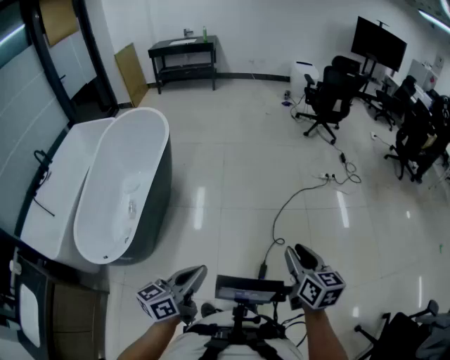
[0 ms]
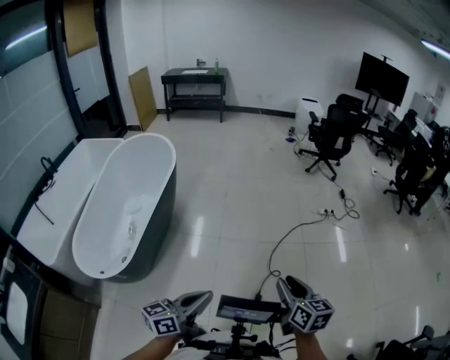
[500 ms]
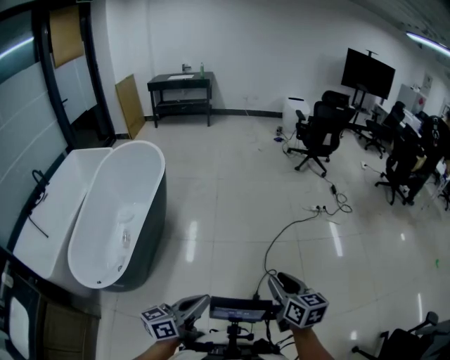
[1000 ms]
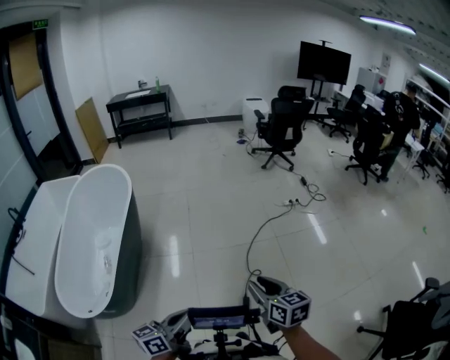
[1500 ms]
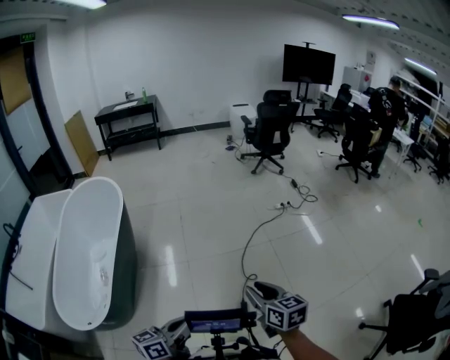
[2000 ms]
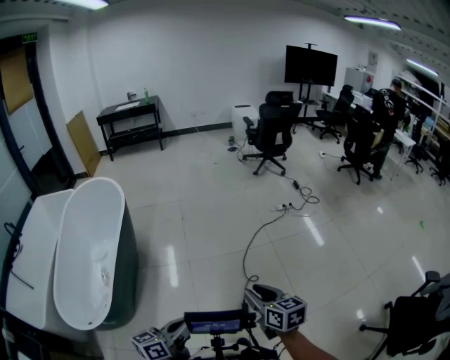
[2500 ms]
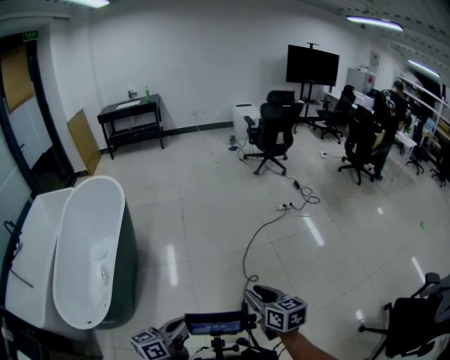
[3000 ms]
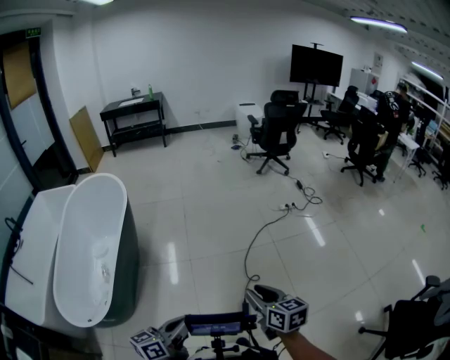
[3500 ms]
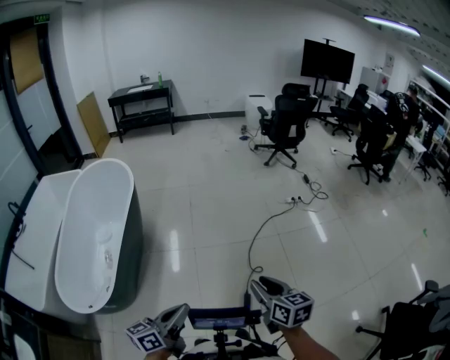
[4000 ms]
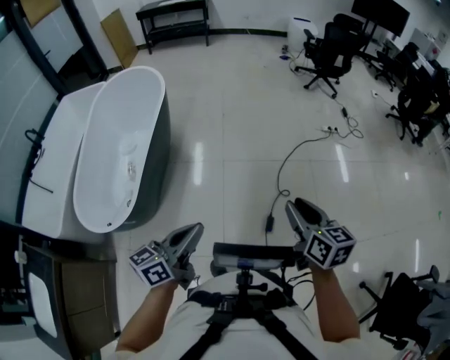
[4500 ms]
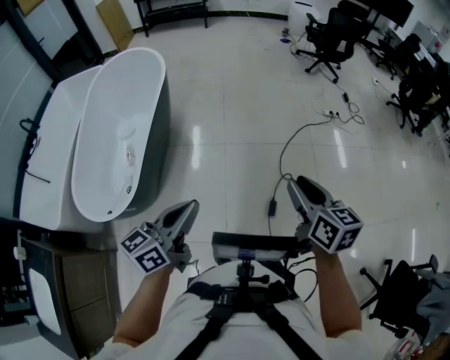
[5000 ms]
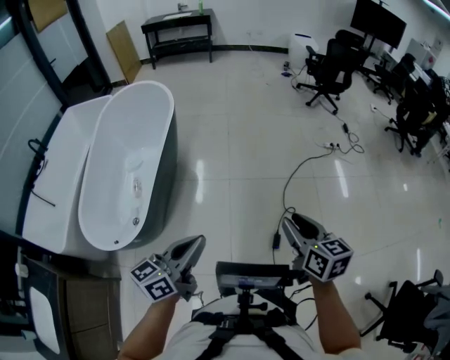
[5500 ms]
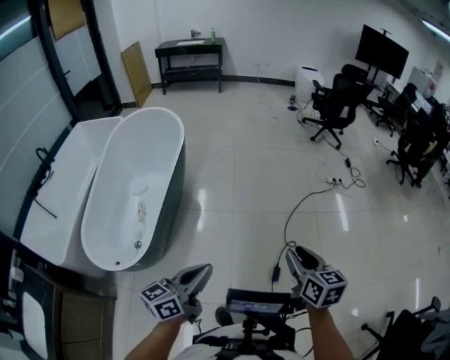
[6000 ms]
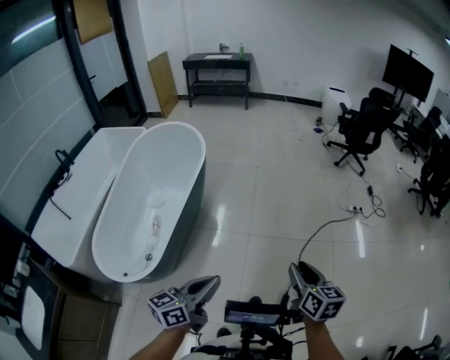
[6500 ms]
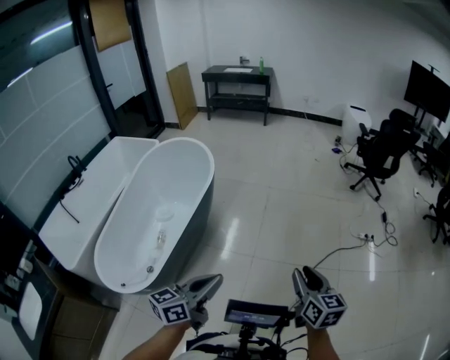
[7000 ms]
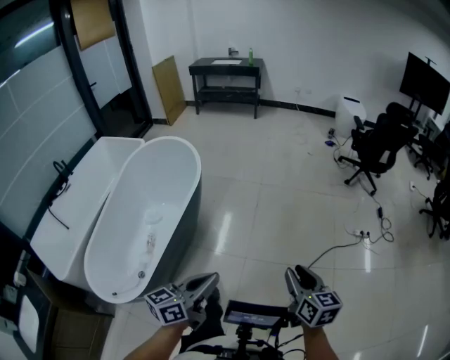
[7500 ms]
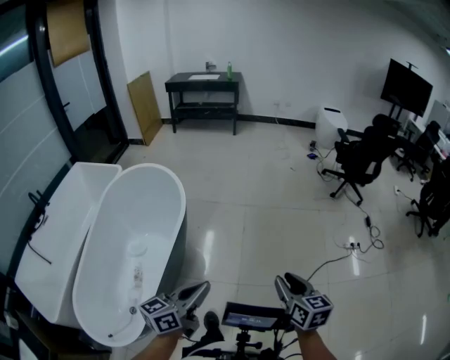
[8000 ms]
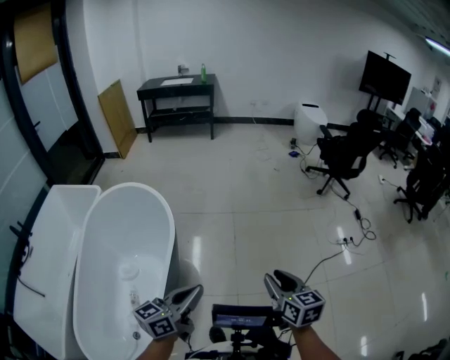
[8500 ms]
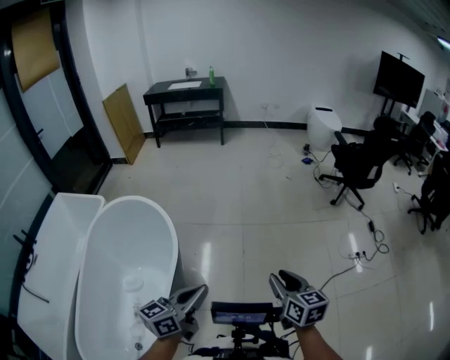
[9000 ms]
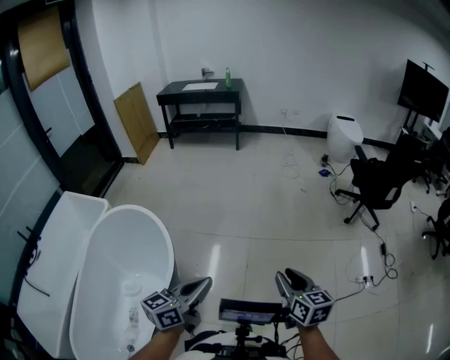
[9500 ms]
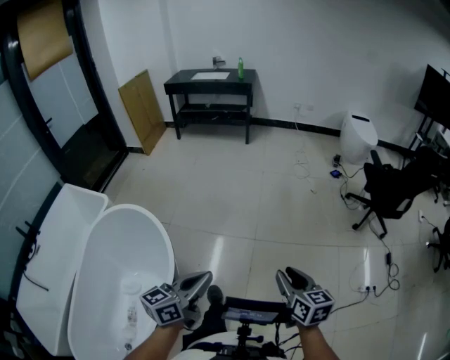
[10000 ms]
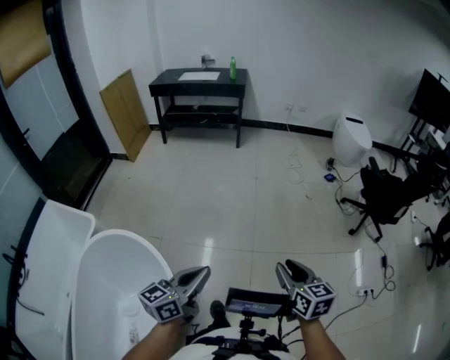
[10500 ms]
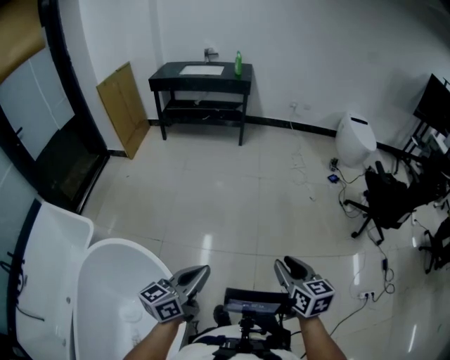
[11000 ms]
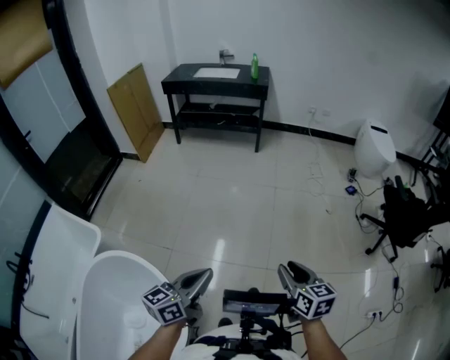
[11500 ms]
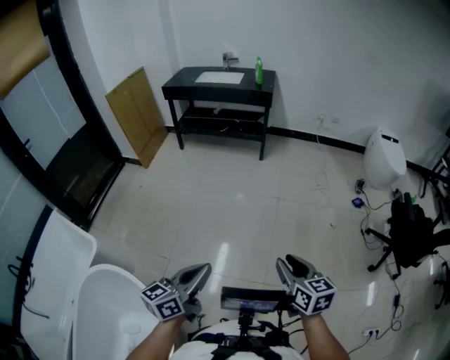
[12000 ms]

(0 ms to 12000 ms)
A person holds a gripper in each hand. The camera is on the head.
0 ms - 2000 ms: The right gripper moves roughly 5 cm. The left gripper shifts by roughly 5 cm.
2000 ms - 4000 ms: The grippers move only a little.
4000 ms - 6000 ms: Both grippers move to the left, roughly 10 cm.
6000 ms - 8000 ms: Both grippers are carried forward, approximately 40 cm.
8000 ms - 10000 ms: Both grippers are carried forward, roughly 50 cm.
10000 ms - 12000 ms: Both grippers are carried forward, approximately 50 cm.

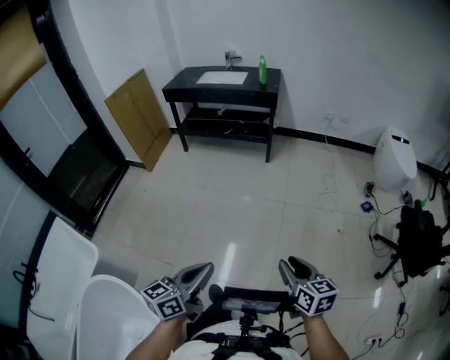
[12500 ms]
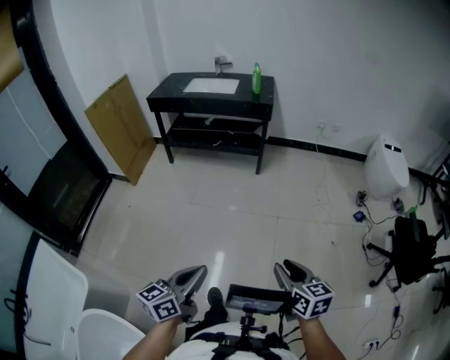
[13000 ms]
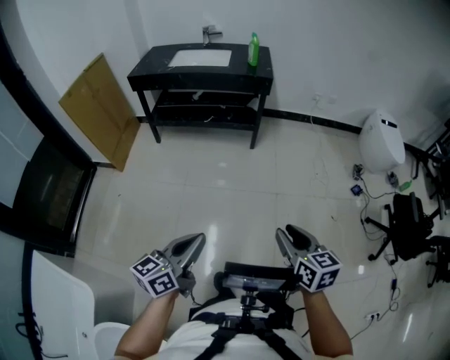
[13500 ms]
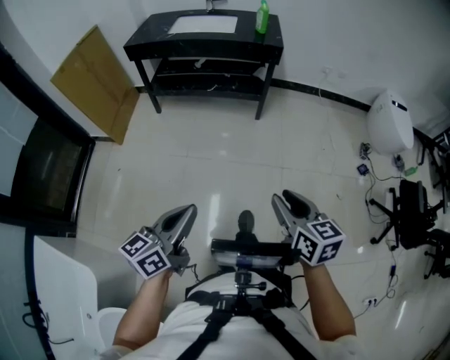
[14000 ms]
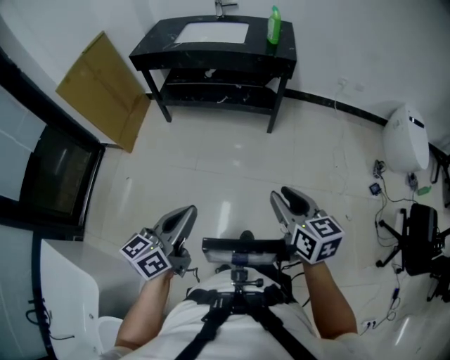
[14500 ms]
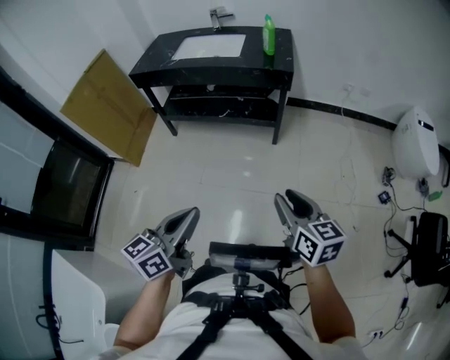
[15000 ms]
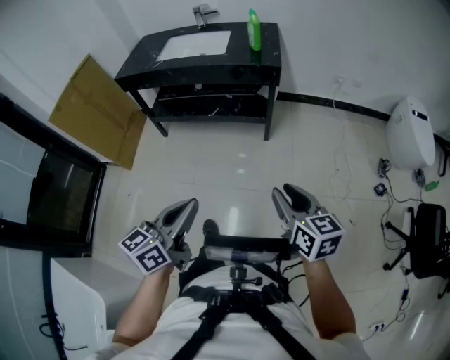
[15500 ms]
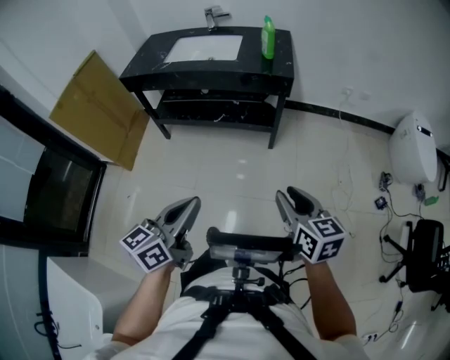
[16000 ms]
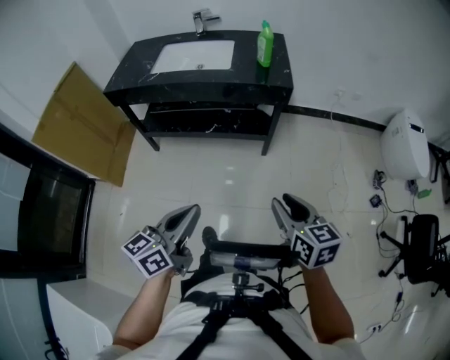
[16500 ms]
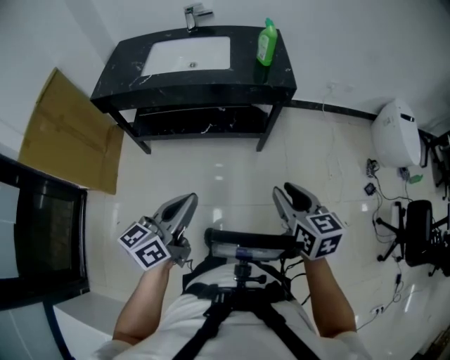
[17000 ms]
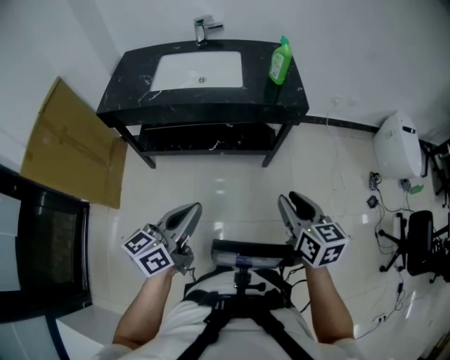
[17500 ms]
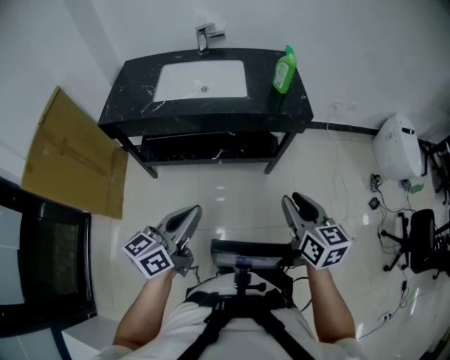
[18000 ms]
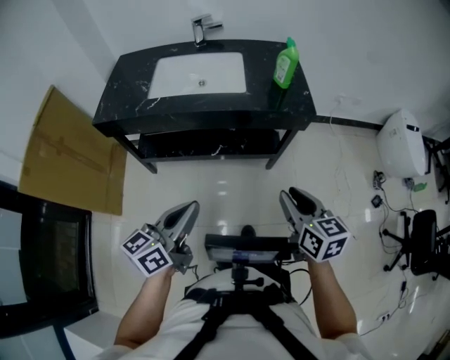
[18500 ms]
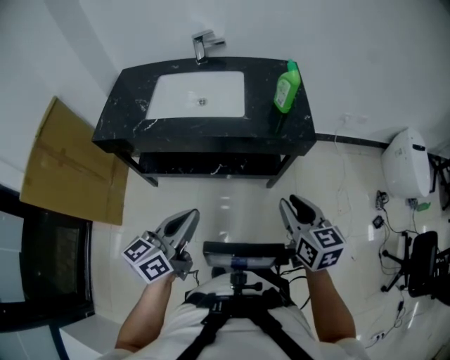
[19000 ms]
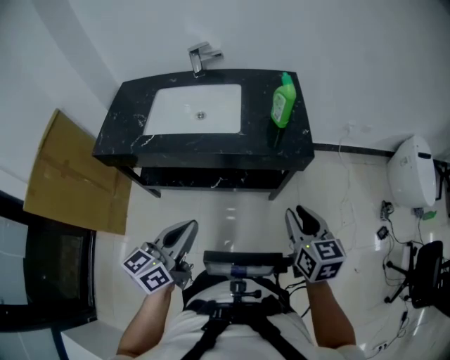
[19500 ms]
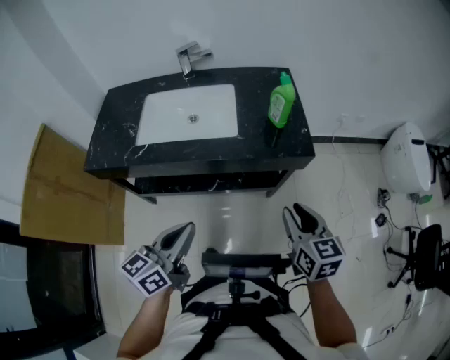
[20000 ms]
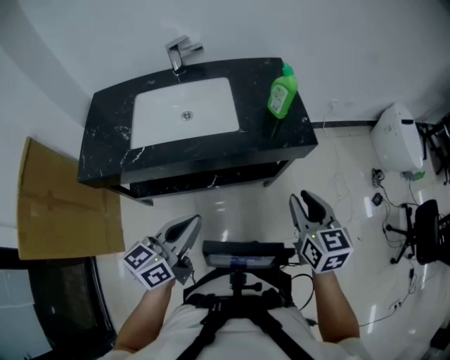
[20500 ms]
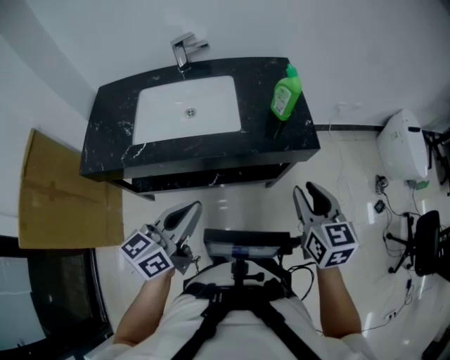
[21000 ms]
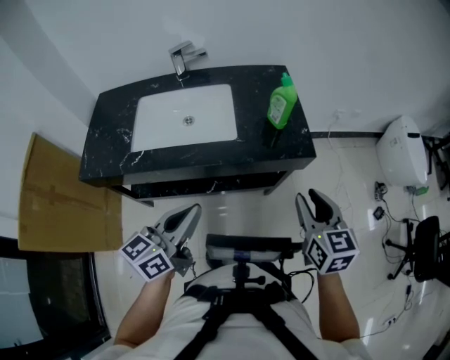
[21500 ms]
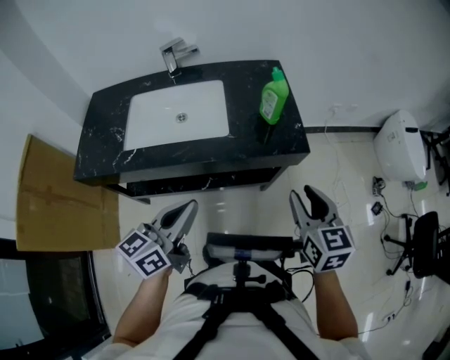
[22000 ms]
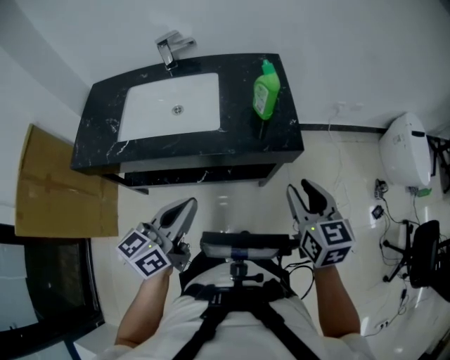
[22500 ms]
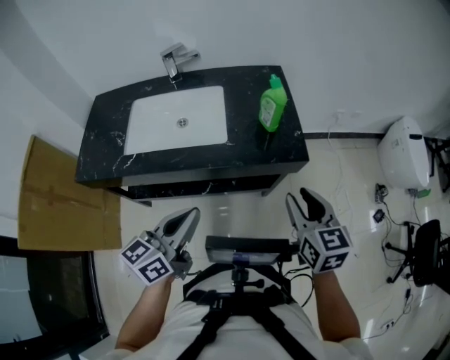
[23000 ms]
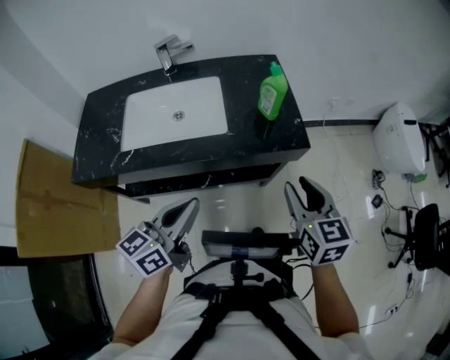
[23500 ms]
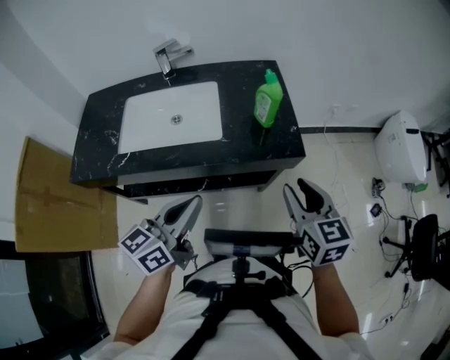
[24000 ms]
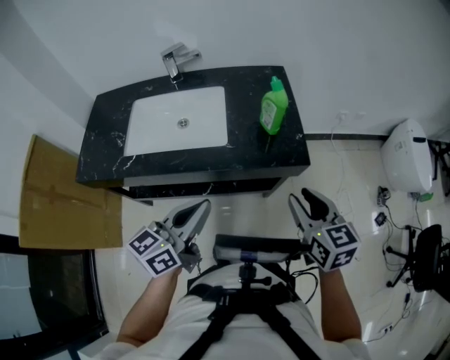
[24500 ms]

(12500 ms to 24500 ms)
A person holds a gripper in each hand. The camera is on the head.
12500 ms - 14500 ms: The pair of grippers is taken forward and to the left, some 40 cm.
14500 ms - 16500 ms: The grippers both shift forward by roughly 20 cm.
16500 ms - 18500 ms: Both grippers travel together forward and to the left, approximately 20 cm.
18500 ms - 20500 ms: The two grippers go some 15 cm forward.
20500 ms - 22500 ms: Both grippers move to the right and forward, approximately 10 cm.
22500 ms - 24500 ms: The grippers make only small movements.

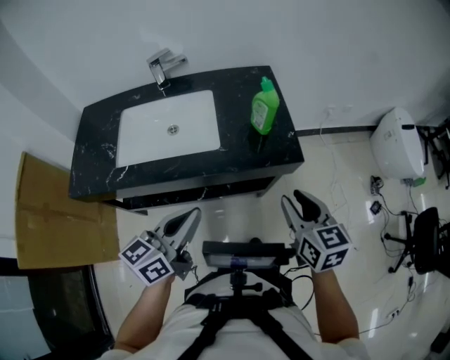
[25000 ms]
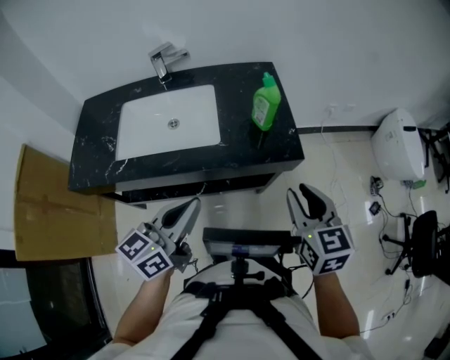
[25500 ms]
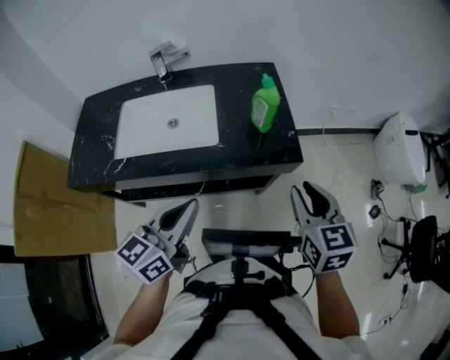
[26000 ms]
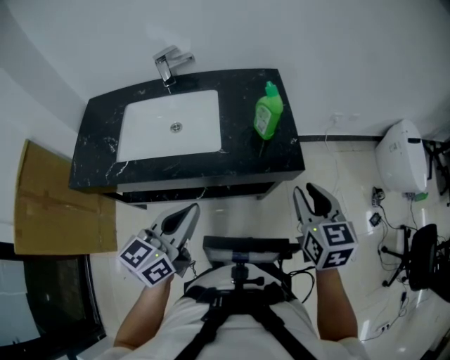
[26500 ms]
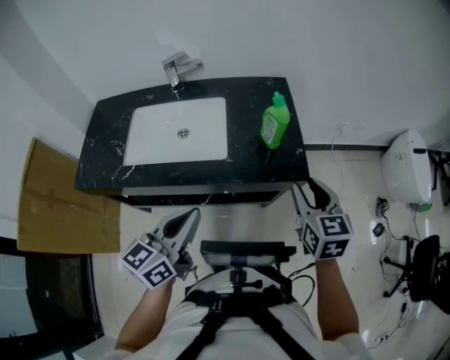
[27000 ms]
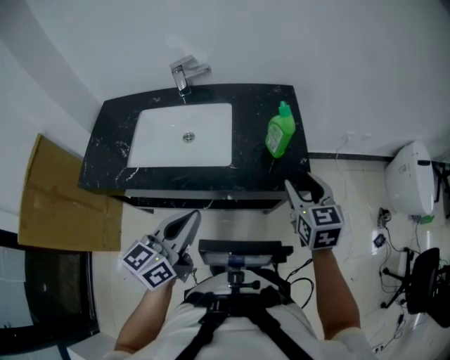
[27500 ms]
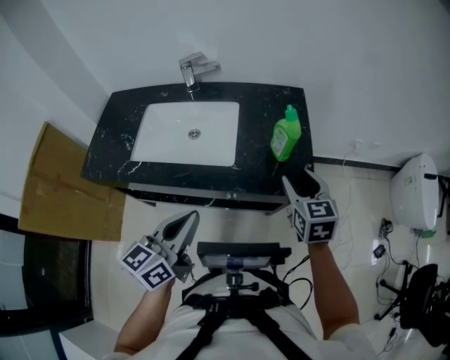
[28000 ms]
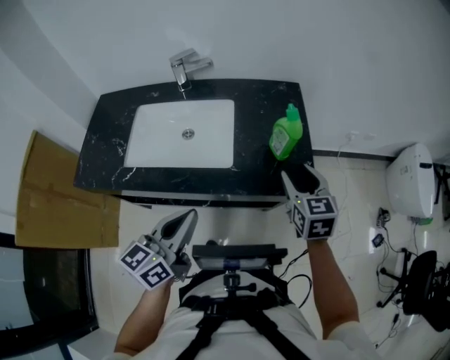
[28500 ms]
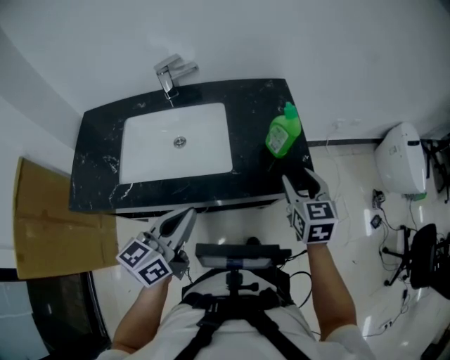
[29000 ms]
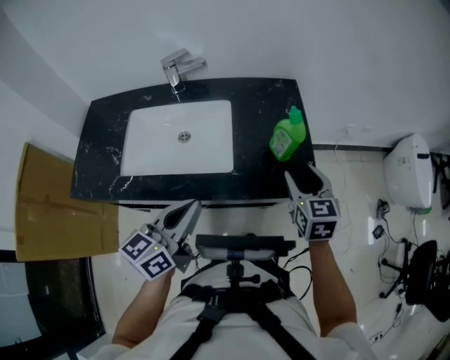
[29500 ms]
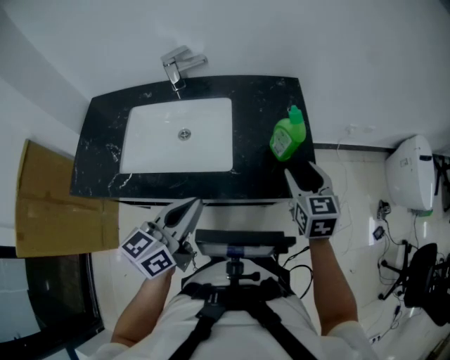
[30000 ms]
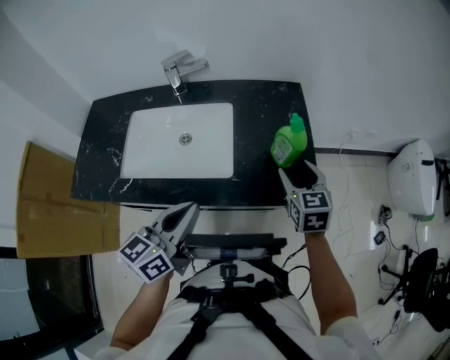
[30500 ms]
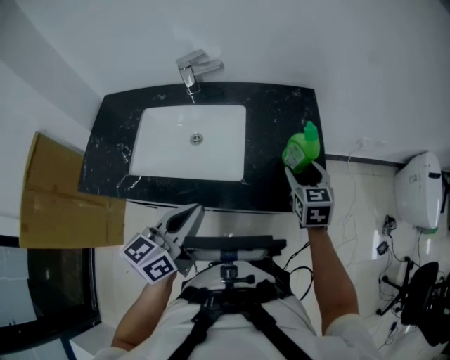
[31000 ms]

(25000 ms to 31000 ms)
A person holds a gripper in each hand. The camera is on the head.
25000 ms - 27000 ms: The right gripper travels forward by roughly 10 cm.
27000 ms - 29000 ms: The left gripper moves to the left and forward, approximately 10 cm, while the right gripper shifts about 10 cm forward and to the left.
29000 ms - 31000 ms: The right gripper shifts about 10 cm forward.
